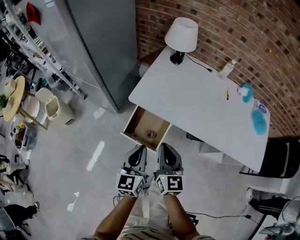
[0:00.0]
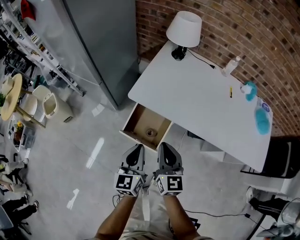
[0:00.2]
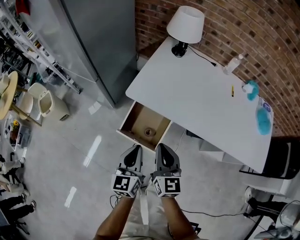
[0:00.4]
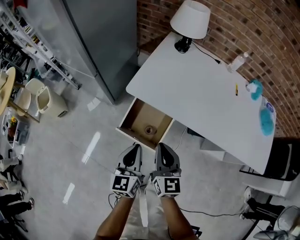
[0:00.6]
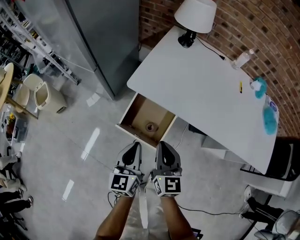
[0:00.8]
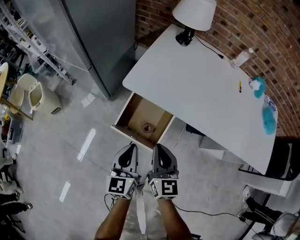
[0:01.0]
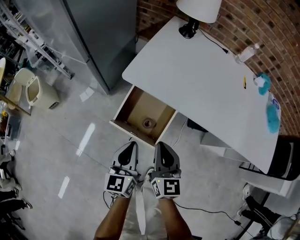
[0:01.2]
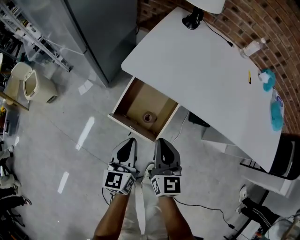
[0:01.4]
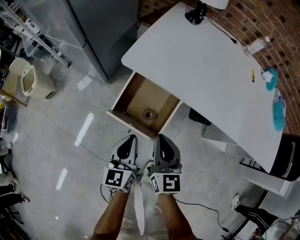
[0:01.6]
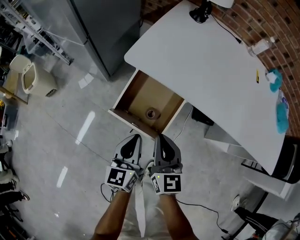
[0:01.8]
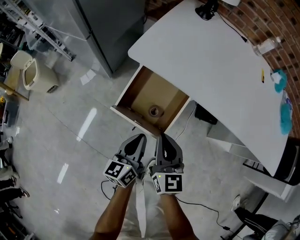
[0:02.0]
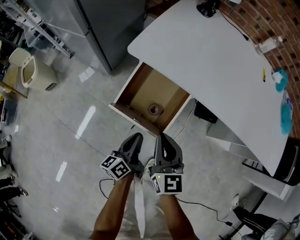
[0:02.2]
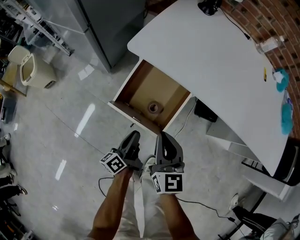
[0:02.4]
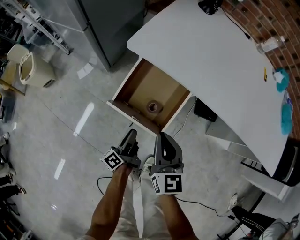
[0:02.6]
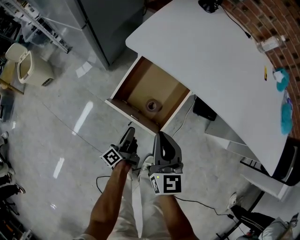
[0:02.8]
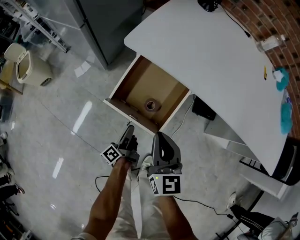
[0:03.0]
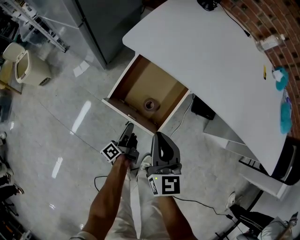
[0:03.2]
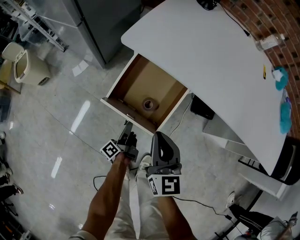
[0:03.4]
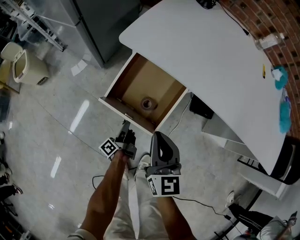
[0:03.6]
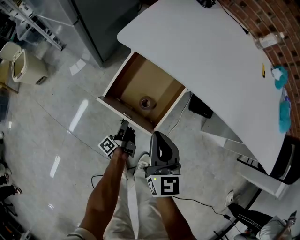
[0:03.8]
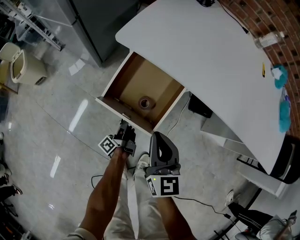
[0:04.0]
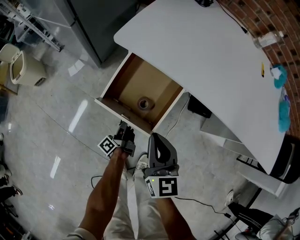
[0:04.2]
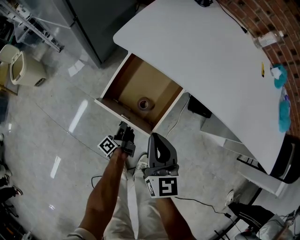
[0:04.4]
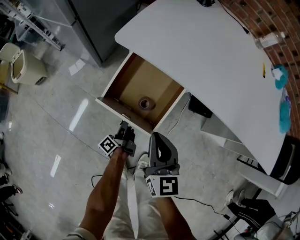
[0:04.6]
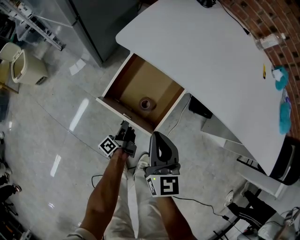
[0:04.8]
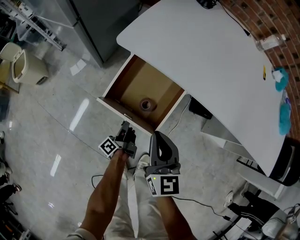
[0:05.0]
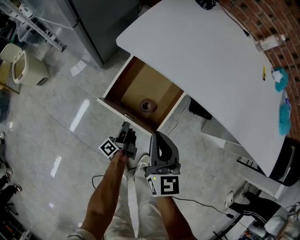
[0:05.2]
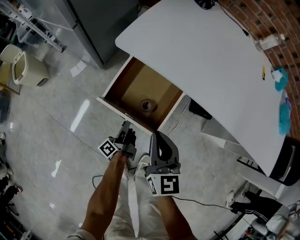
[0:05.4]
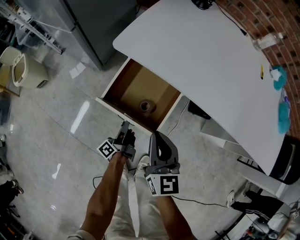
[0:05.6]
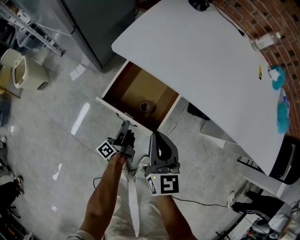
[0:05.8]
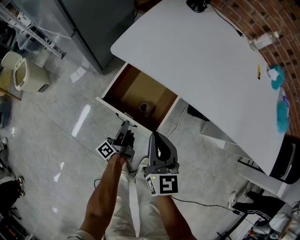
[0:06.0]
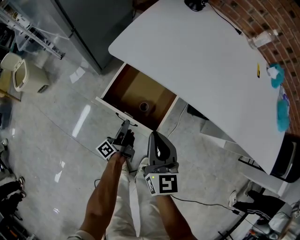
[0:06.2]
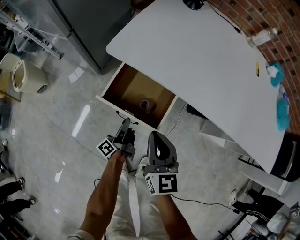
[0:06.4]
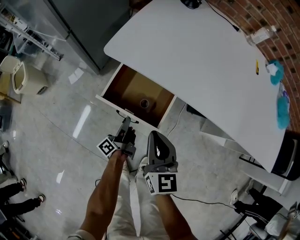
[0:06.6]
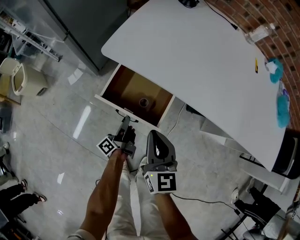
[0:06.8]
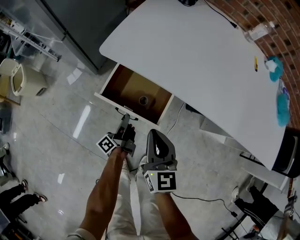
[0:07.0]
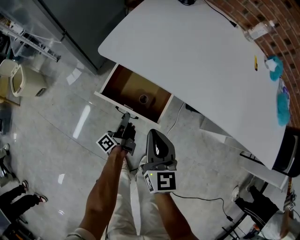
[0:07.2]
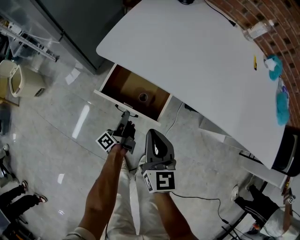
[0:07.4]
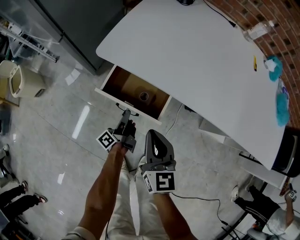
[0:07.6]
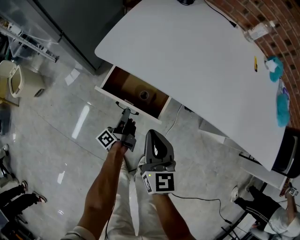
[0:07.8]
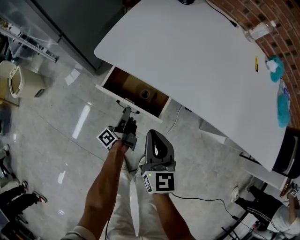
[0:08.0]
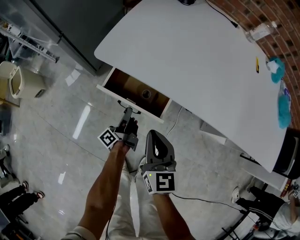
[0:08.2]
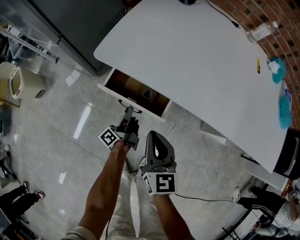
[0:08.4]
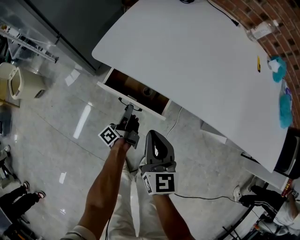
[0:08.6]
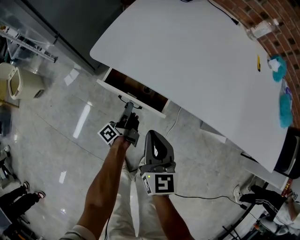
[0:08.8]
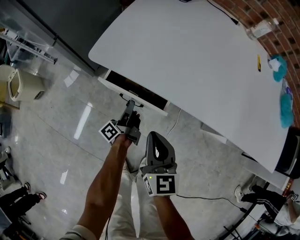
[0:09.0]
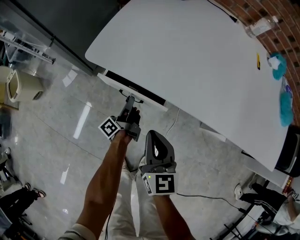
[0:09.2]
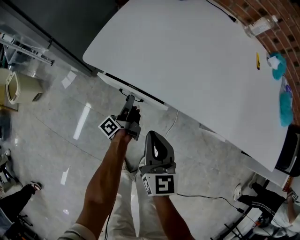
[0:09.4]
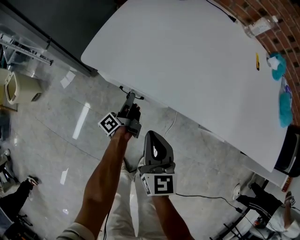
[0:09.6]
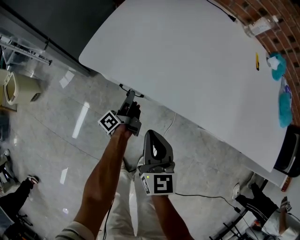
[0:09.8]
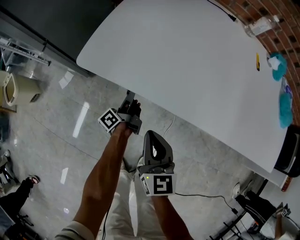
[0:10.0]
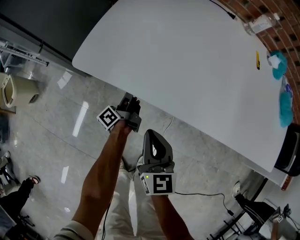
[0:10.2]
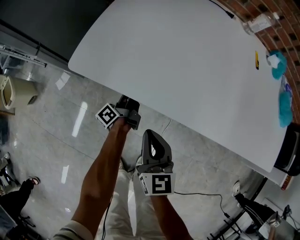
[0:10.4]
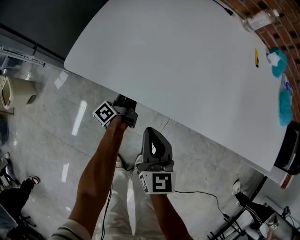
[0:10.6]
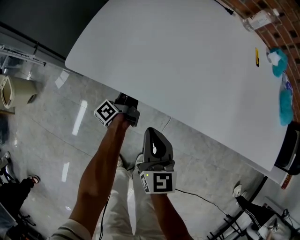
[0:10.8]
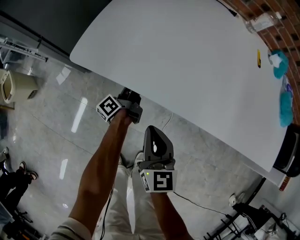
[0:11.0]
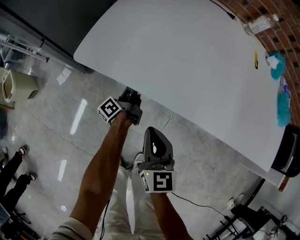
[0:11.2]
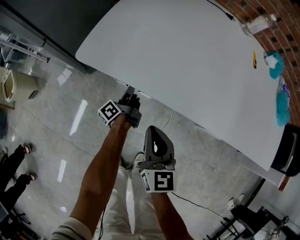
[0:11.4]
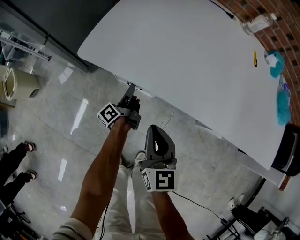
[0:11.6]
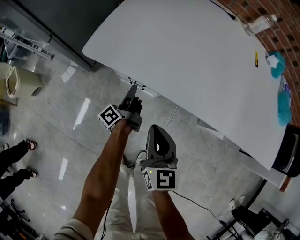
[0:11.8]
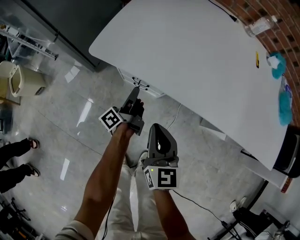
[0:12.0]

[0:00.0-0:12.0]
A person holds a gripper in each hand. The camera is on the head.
0:00.0 to 0:01.6: The two grippers go some 20 cm downward.
0:01.6 to 0:03.0: The left gripper heads downward, covering some 25 cm, and rolls counterclockwise, seen from behind, by about 70 degrees, while the right gripper shifts roughly 5 cm downward.
0:03.0 to 0:04.4: The left gripper changes place by approximately 5 cm.
0:04.4 to 0:06.0: The left gripper travels upward by about 5 cm.
0:06.0 to 0:07.6: The left gripper goes about 5 cm forward.
0:07.6 to 0:09.0: The left gripper goes about 5 cm forward.
0:09.0 to 0:10.4: The left gripper moves forward, some 10 cm.
0:10.4 to 0:12.0: The left gripper is displaced backward and upward by about 10 cm.

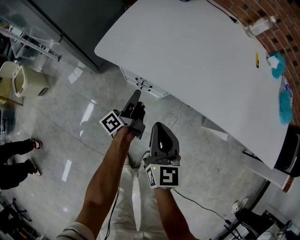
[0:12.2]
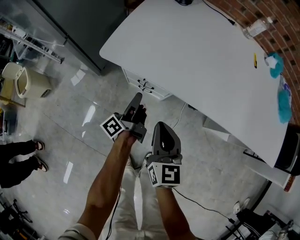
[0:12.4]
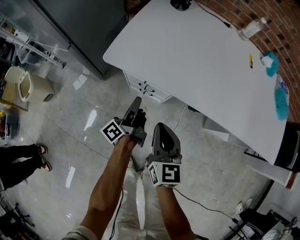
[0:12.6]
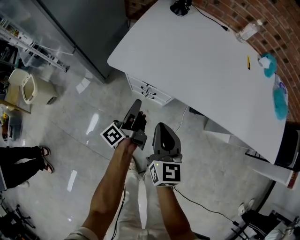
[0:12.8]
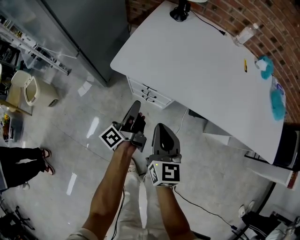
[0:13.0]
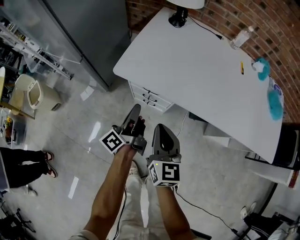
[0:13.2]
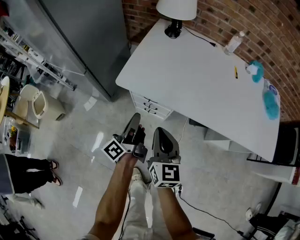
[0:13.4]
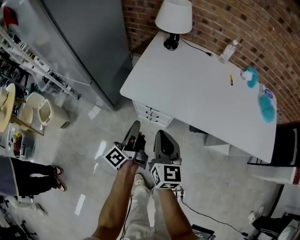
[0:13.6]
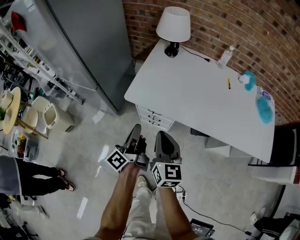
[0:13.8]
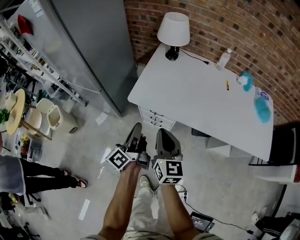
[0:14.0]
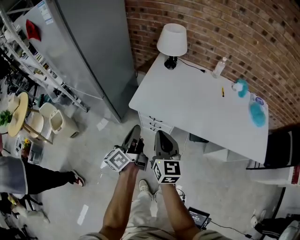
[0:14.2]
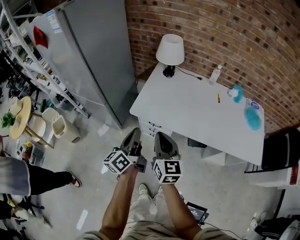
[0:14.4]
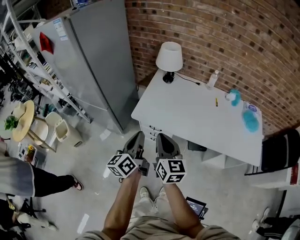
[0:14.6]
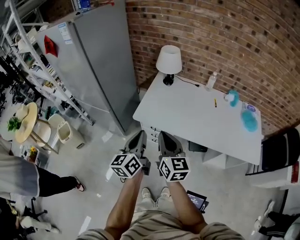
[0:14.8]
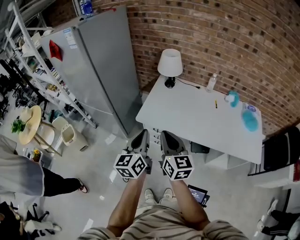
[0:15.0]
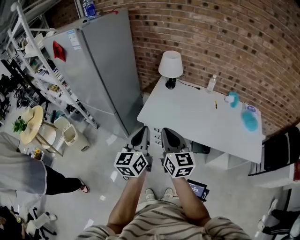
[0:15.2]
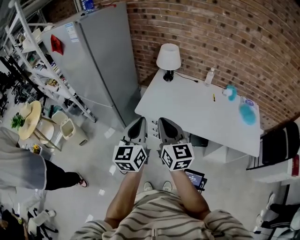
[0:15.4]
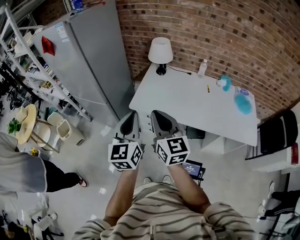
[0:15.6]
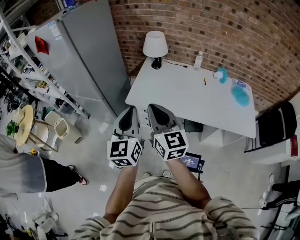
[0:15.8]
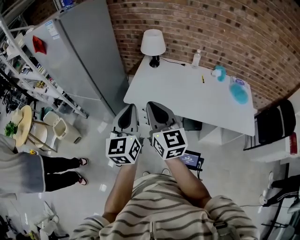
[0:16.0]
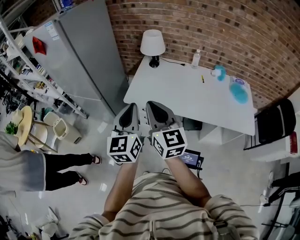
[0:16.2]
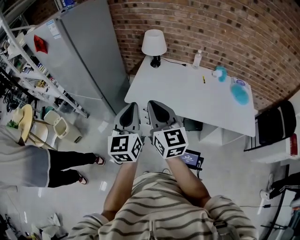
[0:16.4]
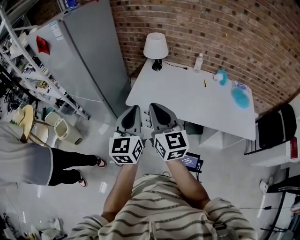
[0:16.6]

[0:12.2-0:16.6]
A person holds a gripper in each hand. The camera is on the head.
0:12.2 to 0:13.6: The two grippers go roughly 20 cm upward.
0:13.6 to 0:15.2: Both grippers move upward, roughly 30 cm. The left gripper rotates around the line of its fingers by about 50 degrees, clockwise from behind.
0:15.2 to 0:16.6: The right gripper ends up approximately 5 cm from where it was.

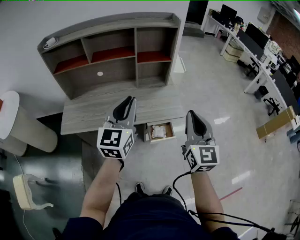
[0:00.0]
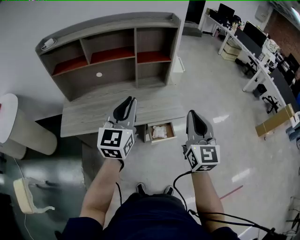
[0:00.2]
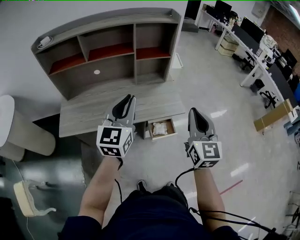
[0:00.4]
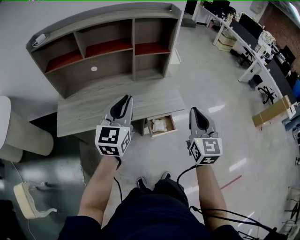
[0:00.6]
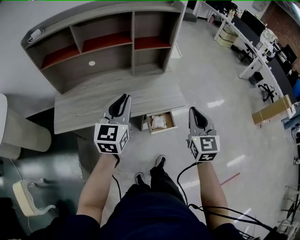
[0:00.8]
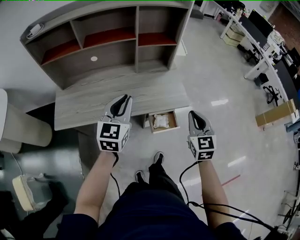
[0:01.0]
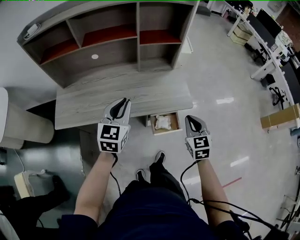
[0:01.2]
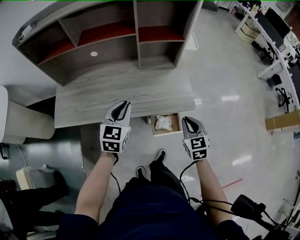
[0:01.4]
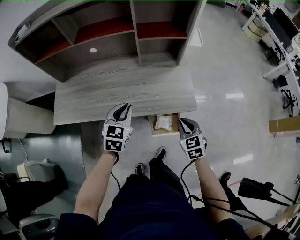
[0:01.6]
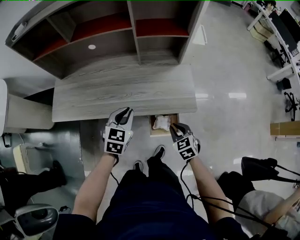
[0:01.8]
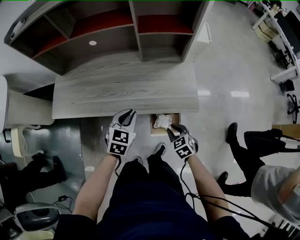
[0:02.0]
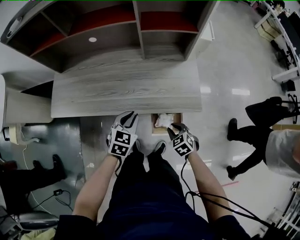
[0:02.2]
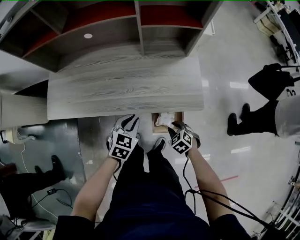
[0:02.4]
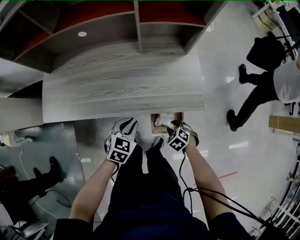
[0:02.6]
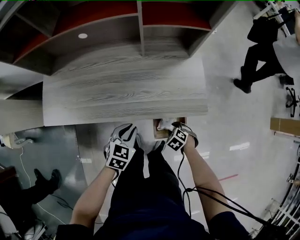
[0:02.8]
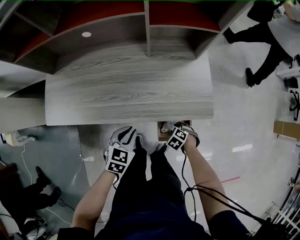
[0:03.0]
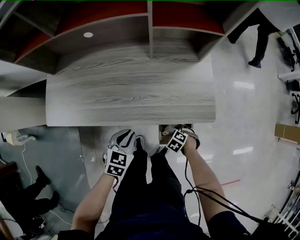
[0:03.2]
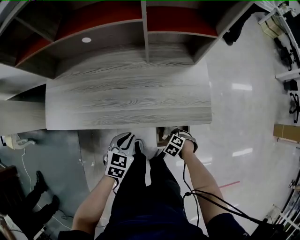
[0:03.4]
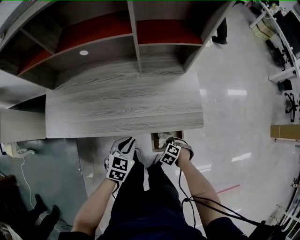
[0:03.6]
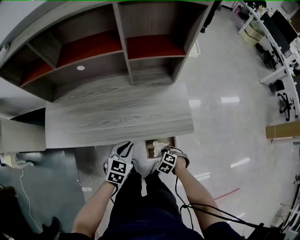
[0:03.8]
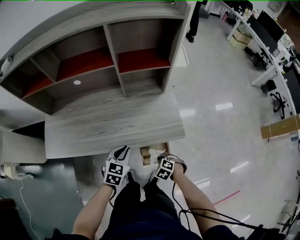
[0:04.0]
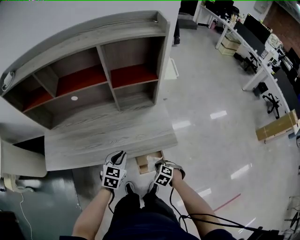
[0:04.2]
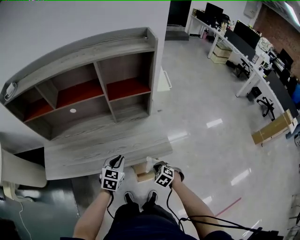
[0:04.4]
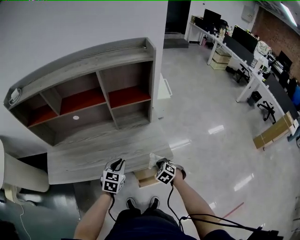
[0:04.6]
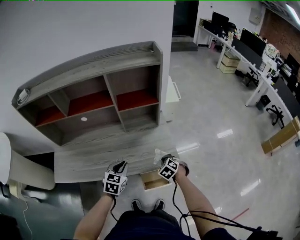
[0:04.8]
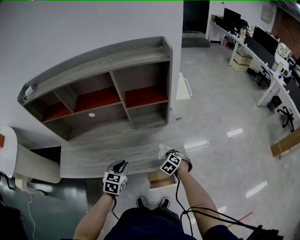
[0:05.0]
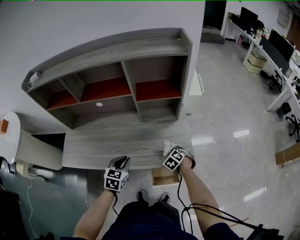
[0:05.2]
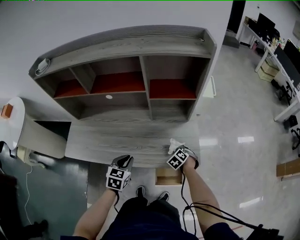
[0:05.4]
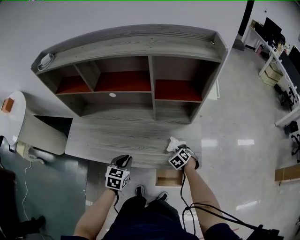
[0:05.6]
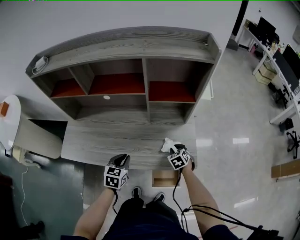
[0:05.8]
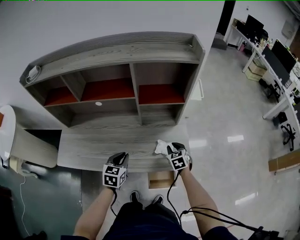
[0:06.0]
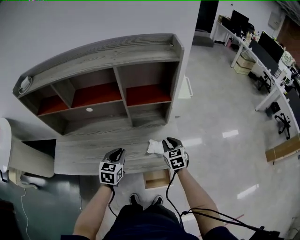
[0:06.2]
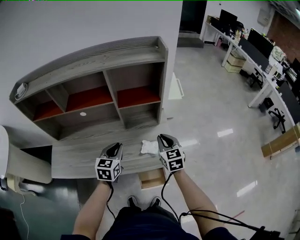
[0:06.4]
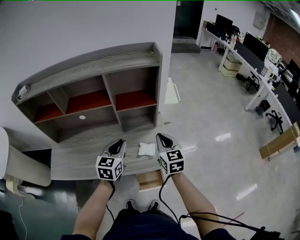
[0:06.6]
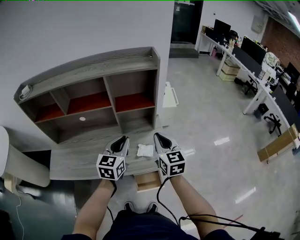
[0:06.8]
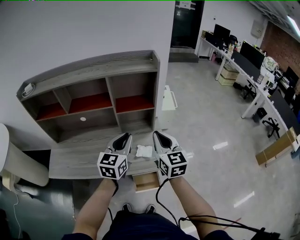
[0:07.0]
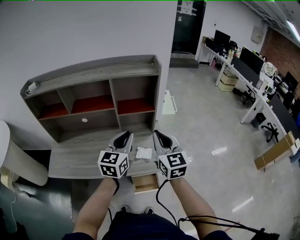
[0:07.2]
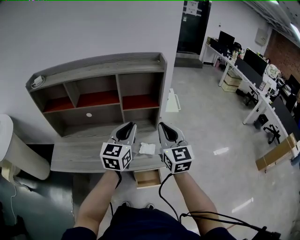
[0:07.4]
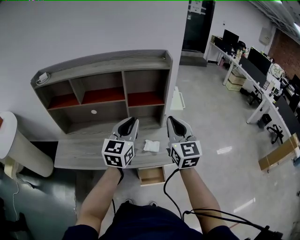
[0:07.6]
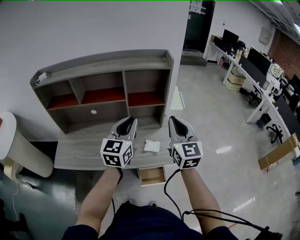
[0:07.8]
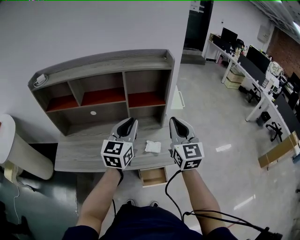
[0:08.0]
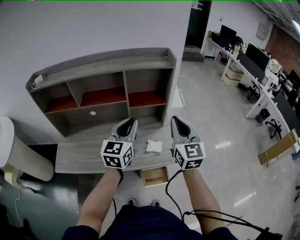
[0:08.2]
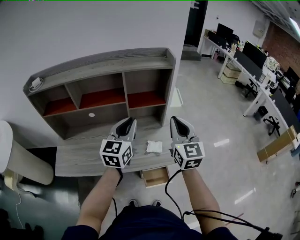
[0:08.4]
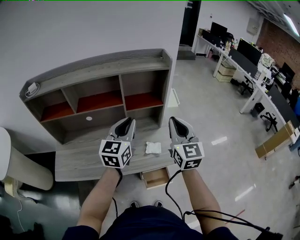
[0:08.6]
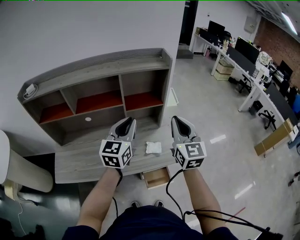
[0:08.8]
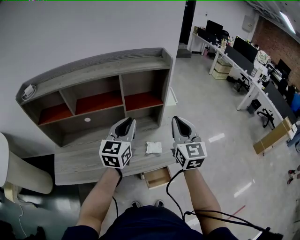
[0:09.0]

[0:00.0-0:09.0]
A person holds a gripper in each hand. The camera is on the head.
0:00.0 to 0:01.6: Both grippers move downward and forward, about 30 cm. The right gripper points its fingers about 40 degrees further downward; the left gripper tips its fingers downward by some 30 degrees.
0:01.6 to 0:03.0: The right gripper travels downward by about 25 cm, tips its fingers downward by approximately 50 degrees, and opens up. The left gripper heads downward, covering roughly 15 cm, and rotates approximately 20 degrees.
0:03.0 to 0:04.4: The right gripper shifts approximately 20 cm upward, rotates some 20 degrees, and closes, while the left gripper heads upward, covering roughly 10 cm.
0:04.4 to 0:06.0: The right gripper travels forward by approximately 20 cm, swivels approximately 30 degrees, and opens; the left gripper is displaced to the left by about 10 cm.
0:06.0 to 0:07.6: The left gripper goes roughly 30 cm upward and to the right, and angles its fingers upward, by roughly 40 degrees. The right gripper heads upward, covering about 40 cm, angles its fingers upward, by some 50 degrees, and closes.
0:07.6 to 0:09.0: The left gripper shifts some 5 cm forward.
